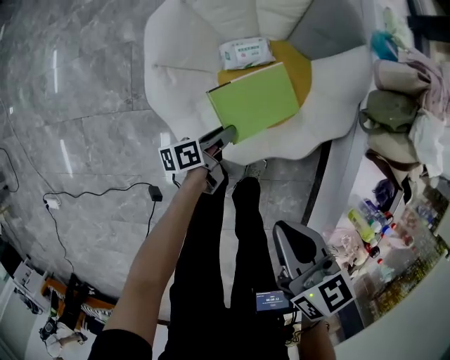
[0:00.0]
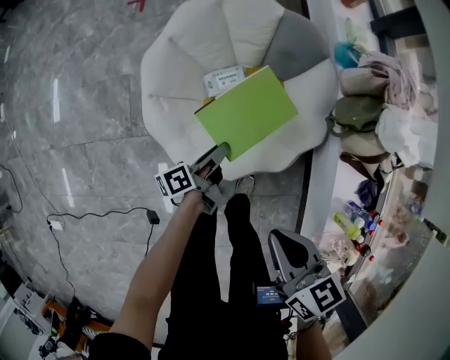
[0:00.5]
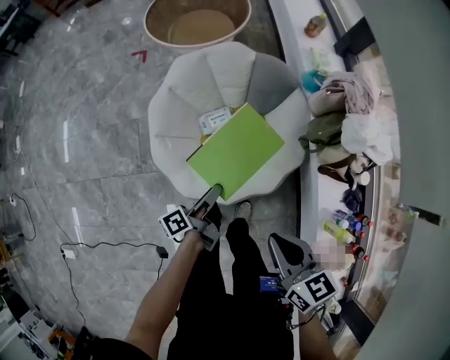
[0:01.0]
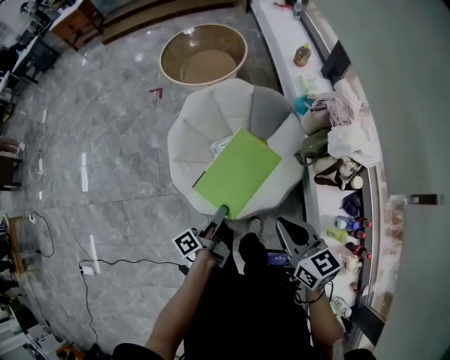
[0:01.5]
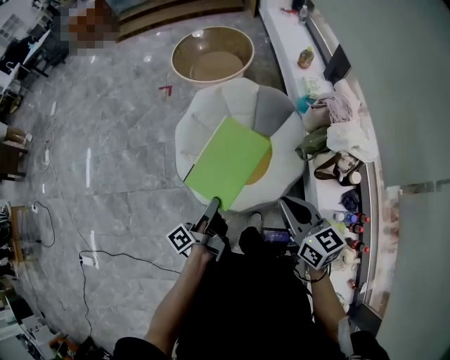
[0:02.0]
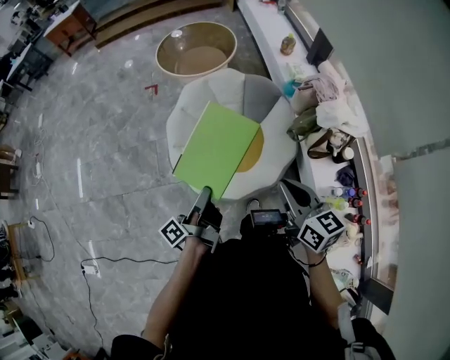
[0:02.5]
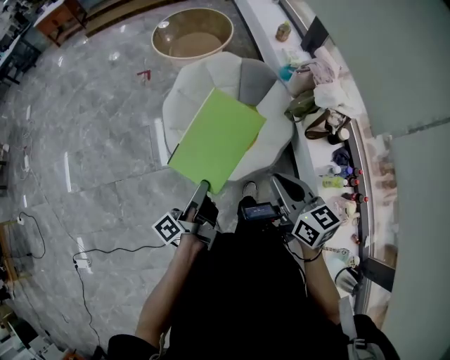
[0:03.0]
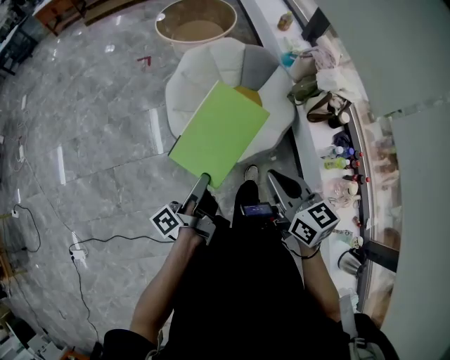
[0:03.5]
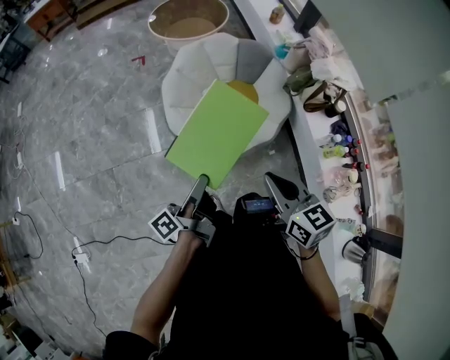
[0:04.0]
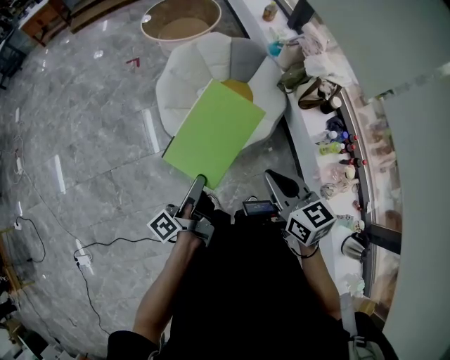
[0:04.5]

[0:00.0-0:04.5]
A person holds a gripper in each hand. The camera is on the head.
0:00.0 to 0:02.0: The right gripper is displaced upward by some 25 cm, and changes its angle by approximately 30 degrees.
0:02.0 to 0:04.5: The right gripper shifts by about 25 cm.

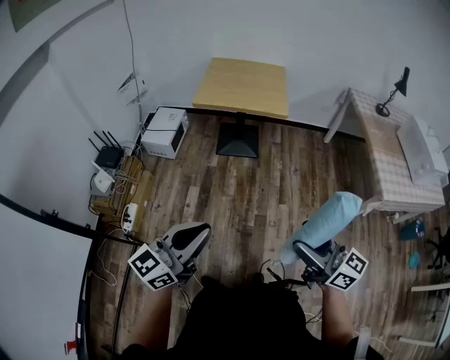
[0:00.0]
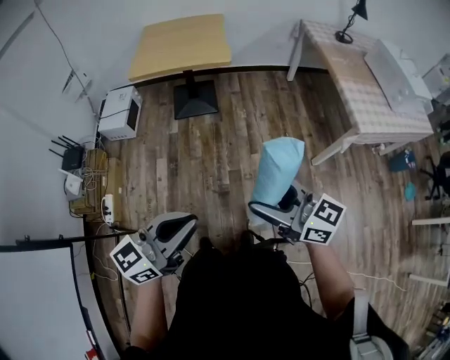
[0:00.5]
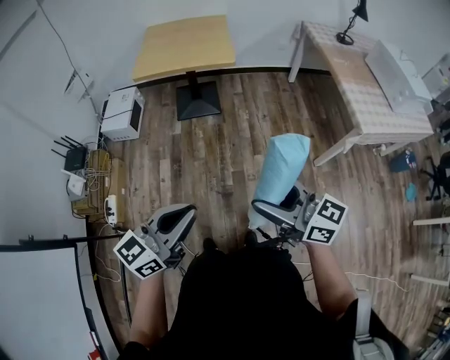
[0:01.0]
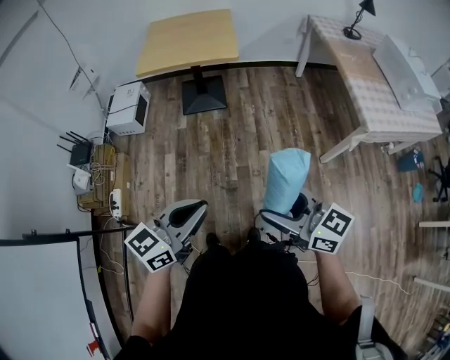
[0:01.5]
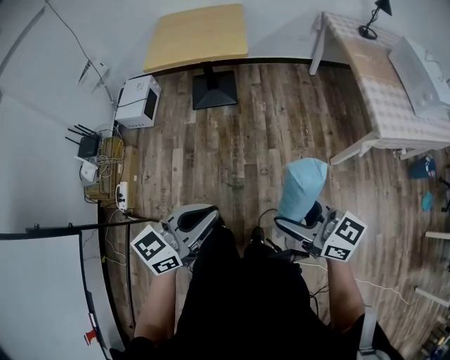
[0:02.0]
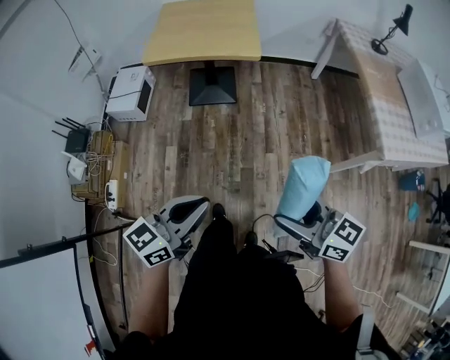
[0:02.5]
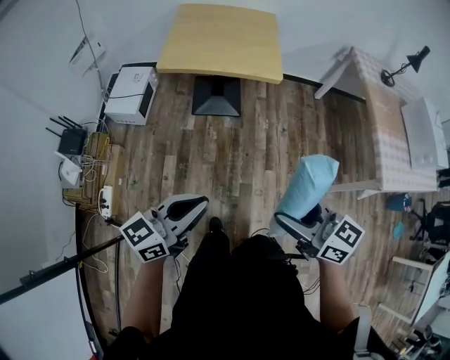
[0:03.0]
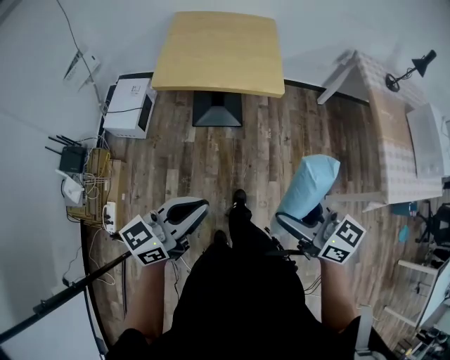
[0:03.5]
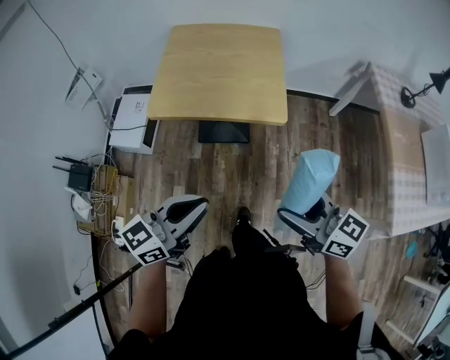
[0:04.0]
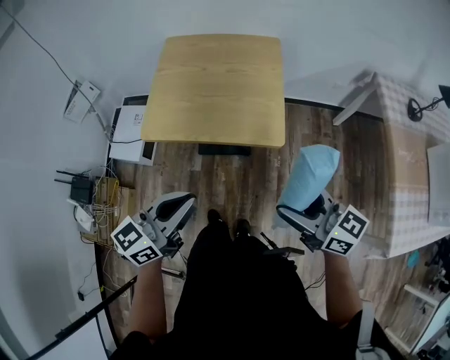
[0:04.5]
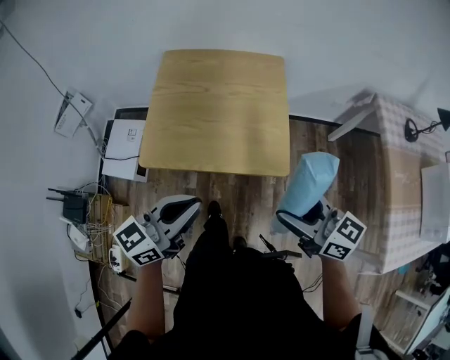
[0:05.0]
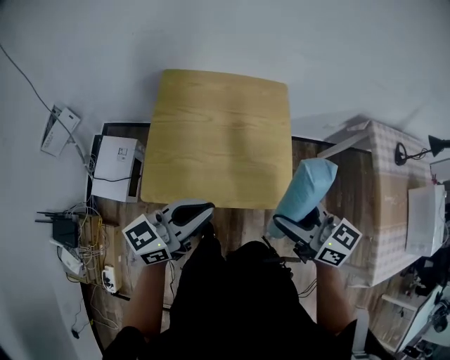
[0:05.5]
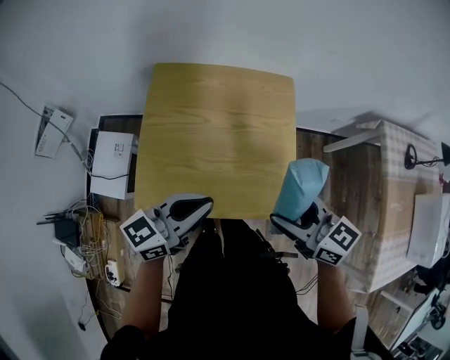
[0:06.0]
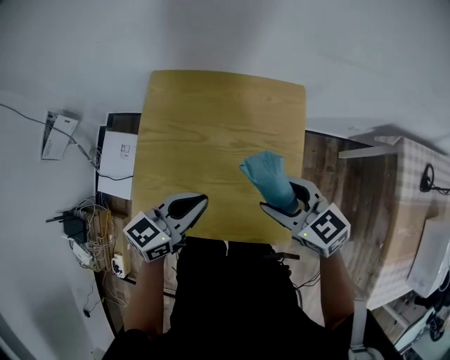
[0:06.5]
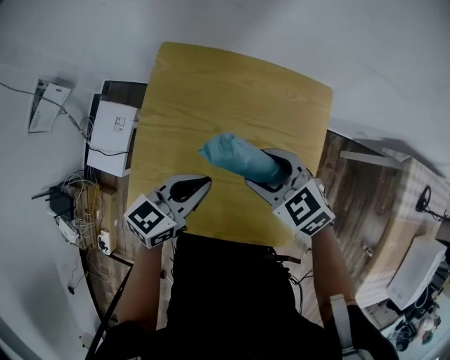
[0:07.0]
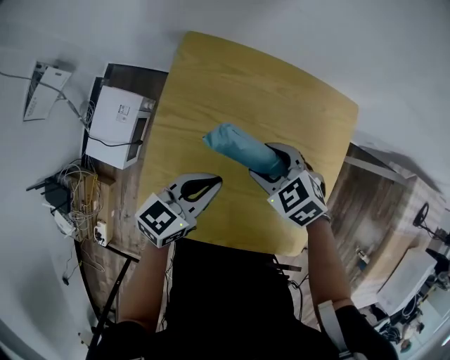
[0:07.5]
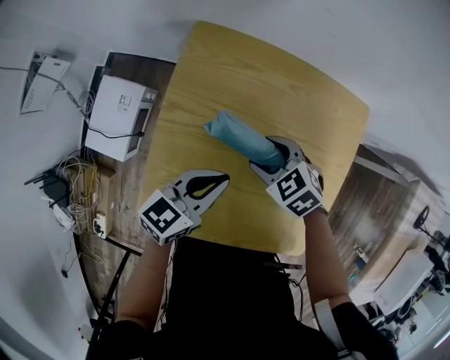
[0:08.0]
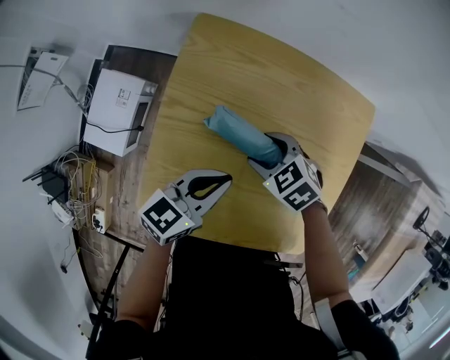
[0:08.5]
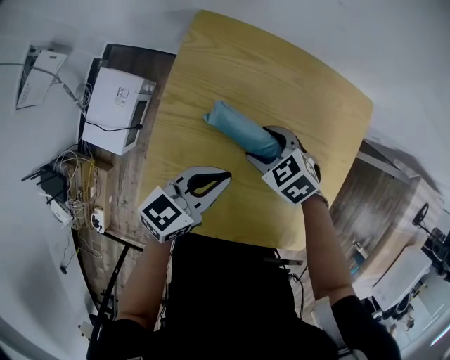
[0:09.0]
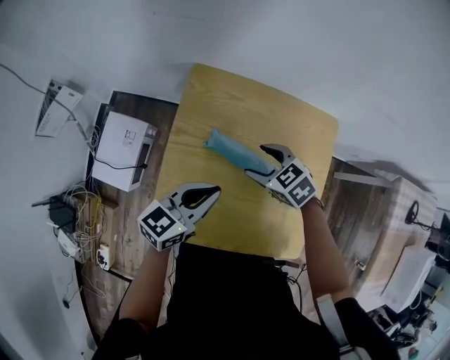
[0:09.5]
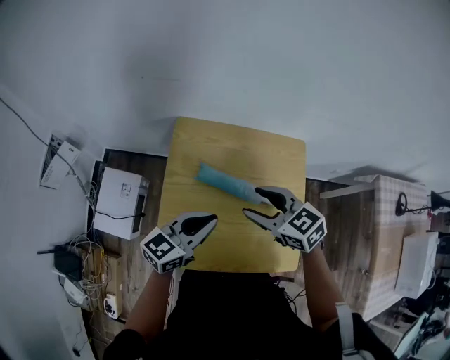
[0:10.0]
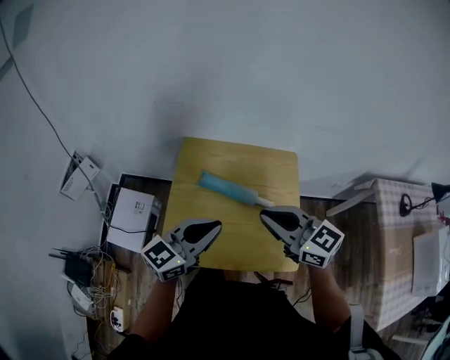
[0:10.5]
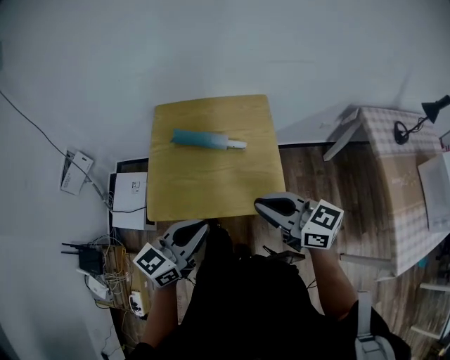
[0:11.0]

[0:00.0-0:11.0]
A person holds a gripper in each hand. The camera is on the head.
0:00.0 to 0:02.0: The left gripper moves to the right, roughly 20 cm; the right gripper moves to the right and downward, roughly 15 cm.
0:02.0 to 0:03.5: The two grippers go approximately 35 cm forward and to the left.
0:03.5 to 0:05.5: The pair of grippers is taken forward, some 50 cm.
0:05.5 to 0:07.5: The grippers both shift forward and downward by about 40 cm. The right gripper angles its fingers downward, by some 40 degrees; the left gripper changes its angle by approximately 30 degrees.
0:07.5 to 0:09.0: The right gripper is displaced downward by roughly 5 cm.
0:09.0 to 0:11.0: The two grippers go some 40 cm backward and upward. The right gripper tips its fingers upward by roughly 50 degrees, and closes up. Meanwhile the left gripper changes its angle by about 20 degrees.

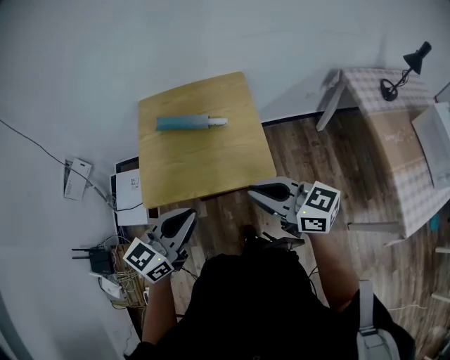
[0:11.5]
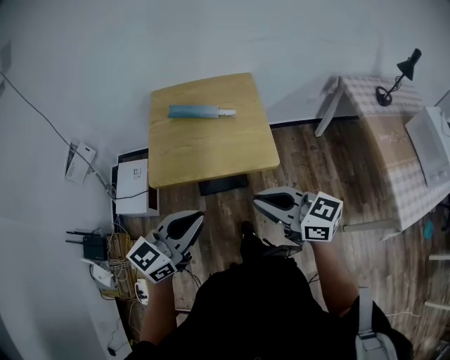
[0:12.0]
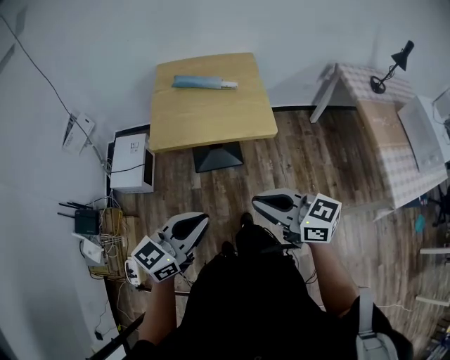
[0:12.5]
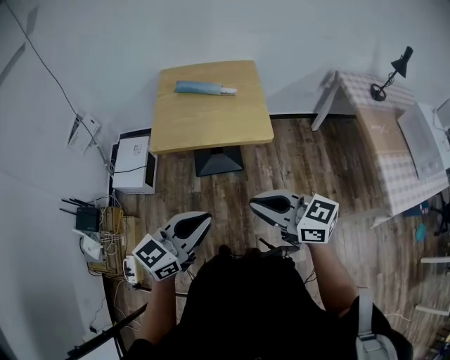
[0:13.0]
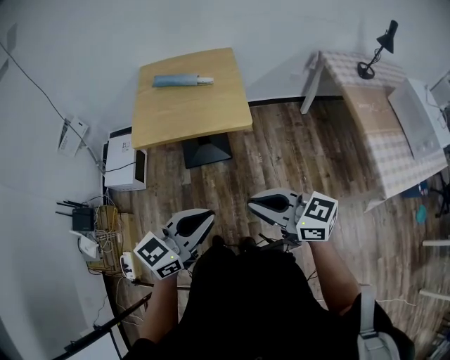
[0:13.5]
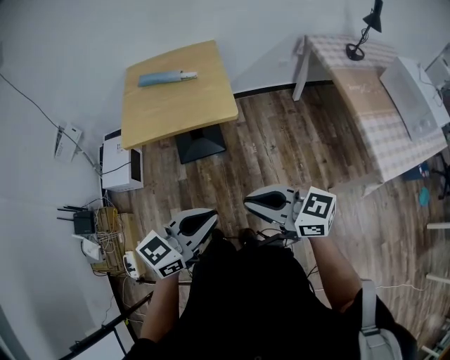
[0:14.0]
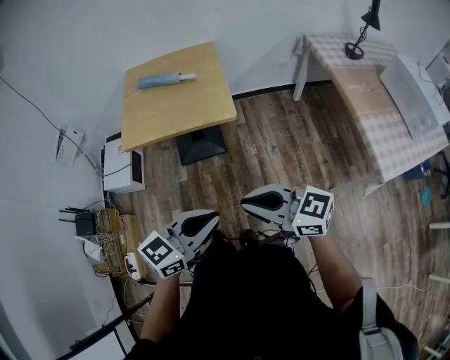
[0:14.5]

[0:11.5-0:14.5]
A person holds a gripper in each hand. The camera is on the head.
0:11.5 to 0:13.0: The two grippers go approximately 25 cm backward.
0:13.0 to 0:14.5: The two grippers go approximately 15 cm to the right and backward.

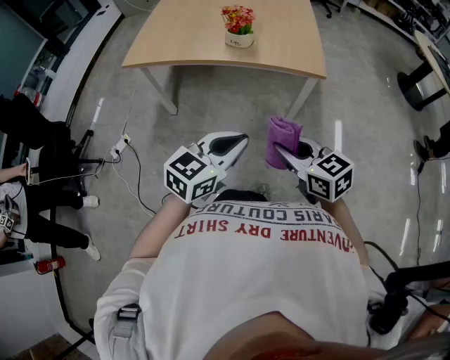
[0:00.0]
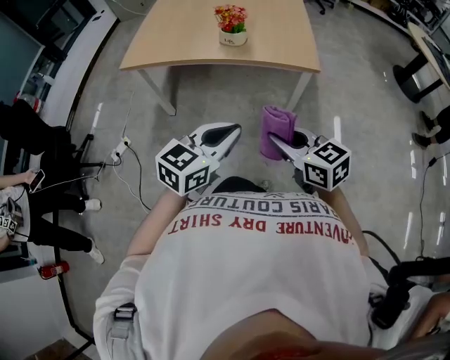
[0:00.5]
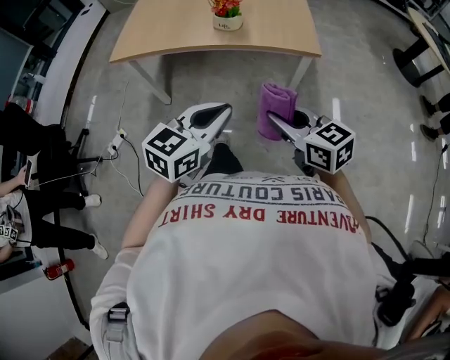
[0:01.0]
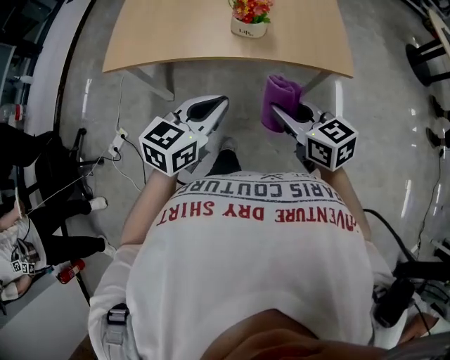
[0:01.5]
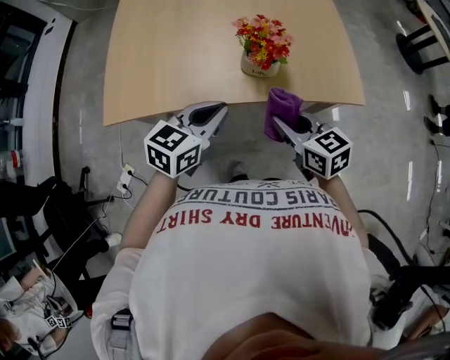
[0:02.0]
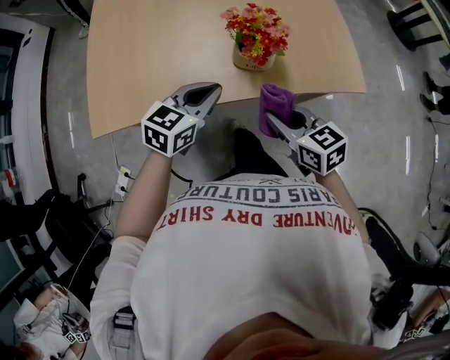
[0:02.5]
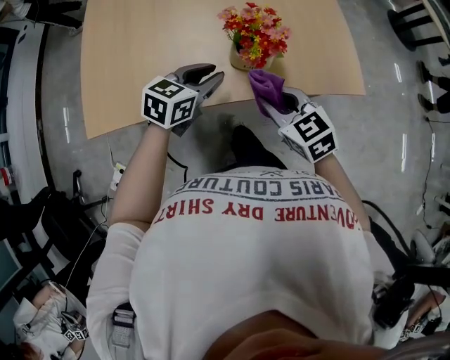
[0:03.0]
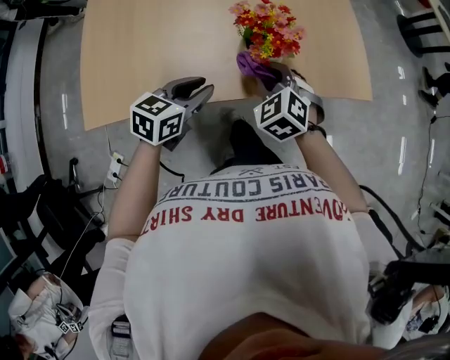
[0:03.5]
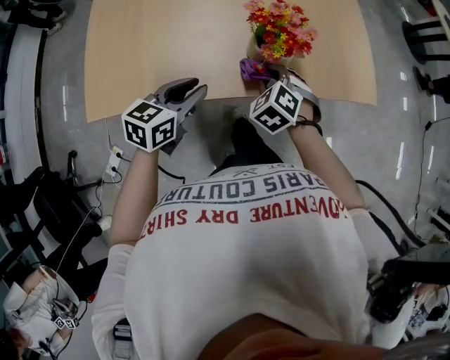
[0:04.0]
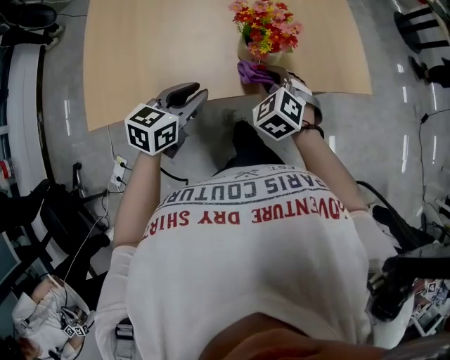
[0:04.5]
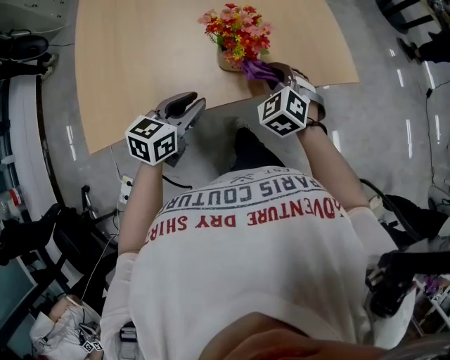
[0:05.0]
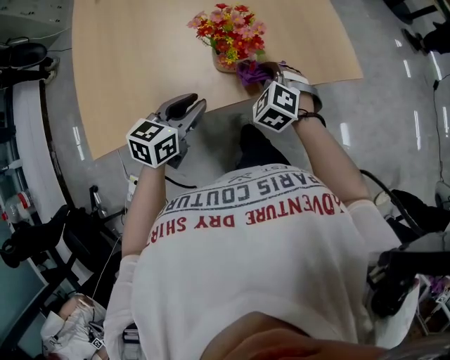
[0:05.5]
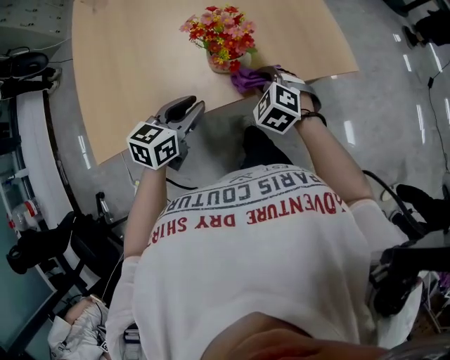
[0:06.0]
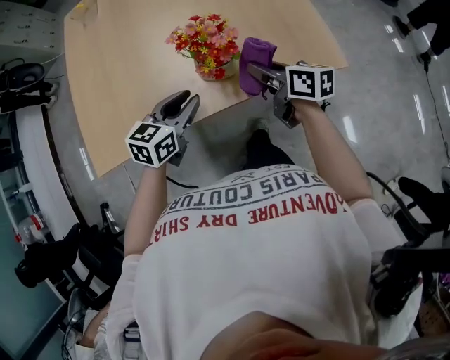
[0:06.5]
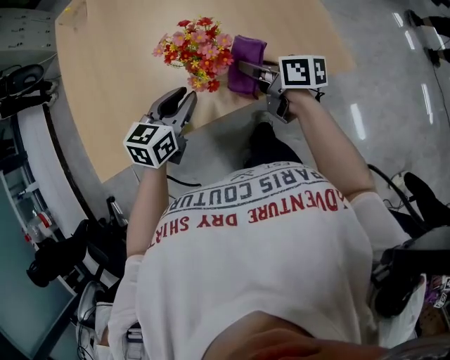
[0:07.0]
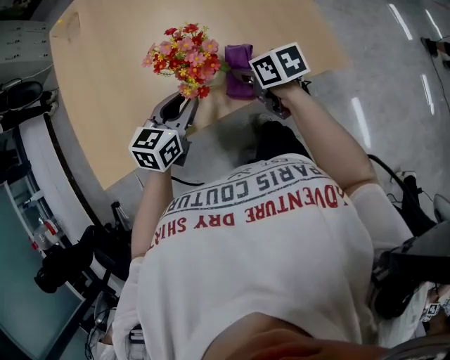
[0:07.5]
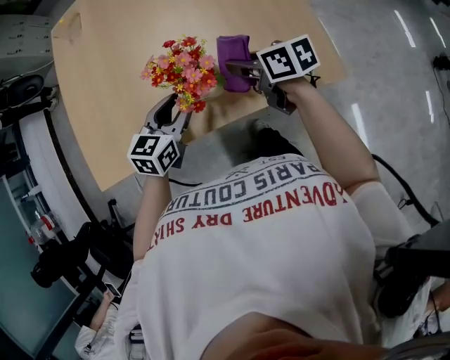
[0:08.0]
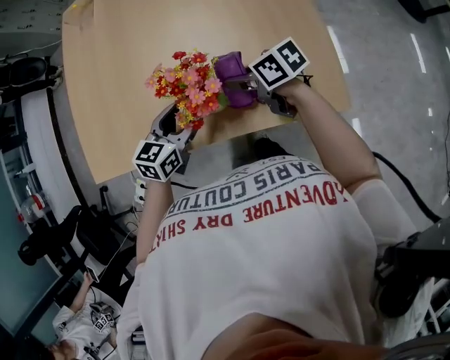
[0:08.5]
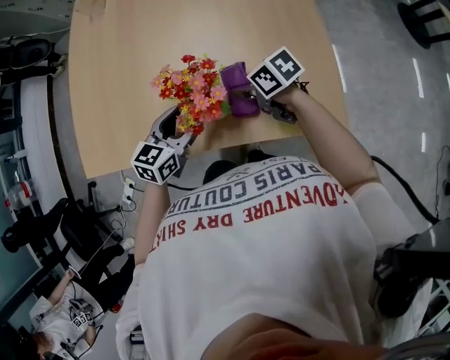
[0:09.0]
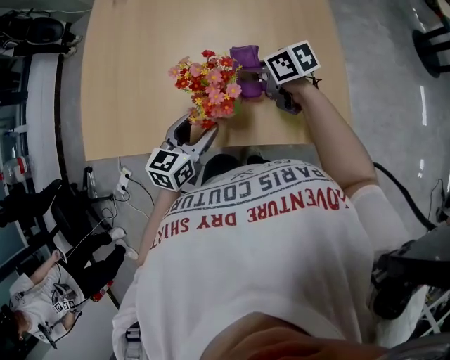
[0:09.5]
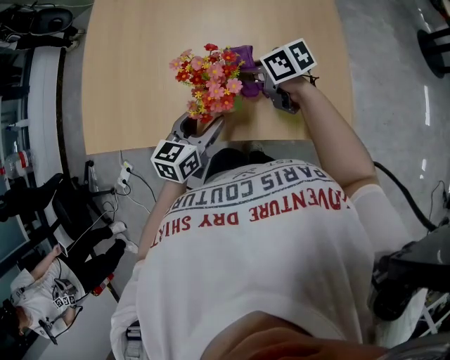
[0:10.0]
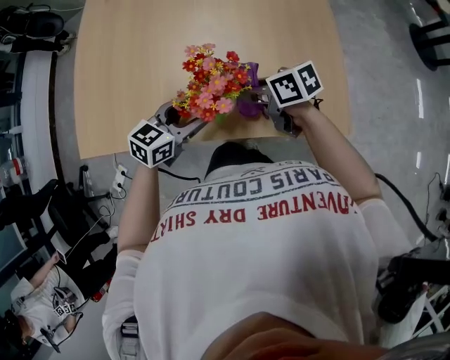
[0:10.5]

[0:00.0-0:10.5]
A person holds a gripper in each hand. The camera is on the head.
0:00.0 to 0:02.0: The pair of grippers is taken forward and to the left, roughly 50 cm.
0:02.0 to 0:04.0: The left gripper goes about 15 cm downward, to the left and forward; the right gripper shifts approximately 20 cm downward, forward and to the left, and changes its angle by roughly 60 degrees.
0:04.0 to 0:06.5: The left gripper is displaced to the right and forward by approximately 10 cm, while the right gripper heads to the right, upward and forward, covering approximately 15 cm, and rolls clockwise, seen from behind, by about 70 degrees.
0:06.5 to 0:08.5: The left gripper moves approximately 10 cm, and opens its fingers. The right gripper changes place by roughly 10 cm, and rotates approximately 40 degrees.
